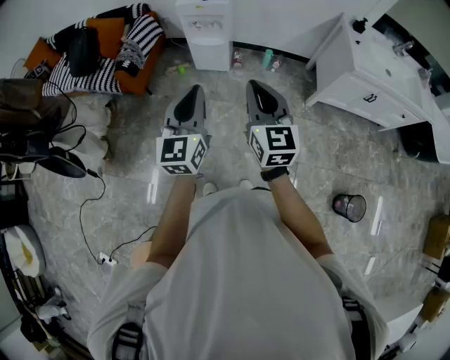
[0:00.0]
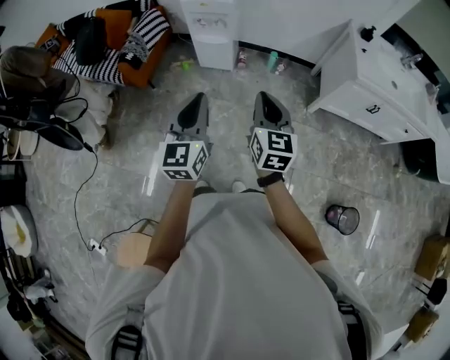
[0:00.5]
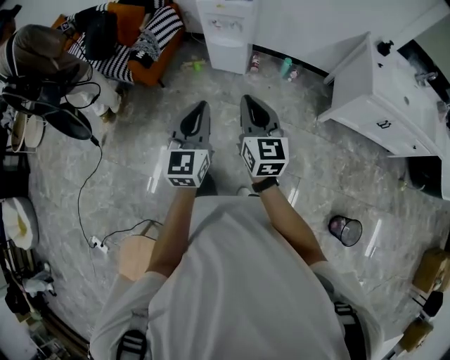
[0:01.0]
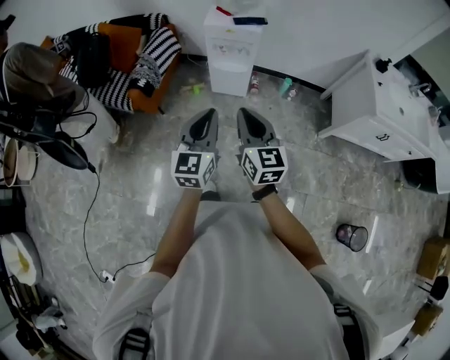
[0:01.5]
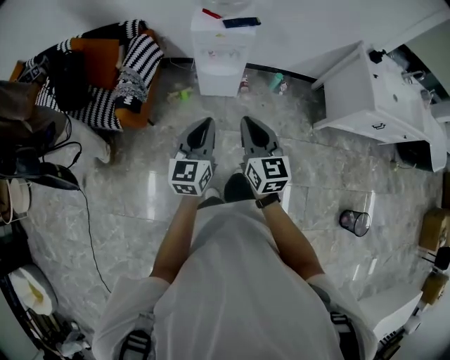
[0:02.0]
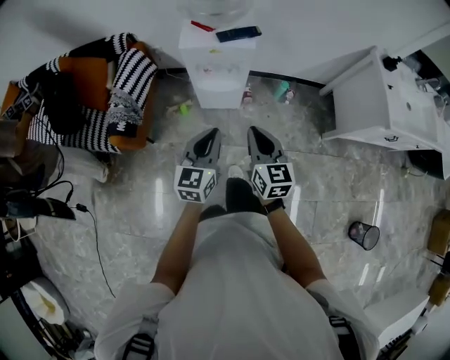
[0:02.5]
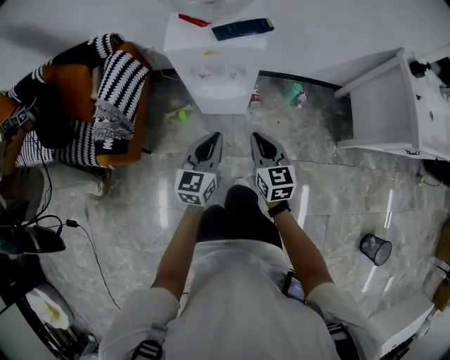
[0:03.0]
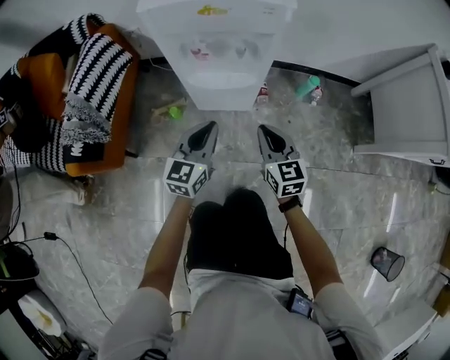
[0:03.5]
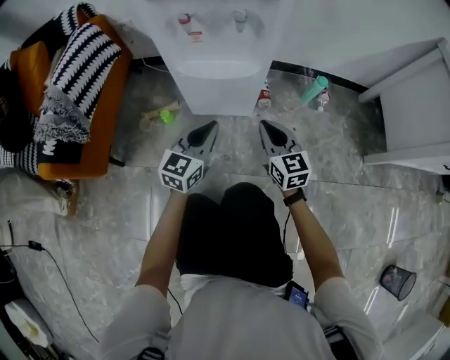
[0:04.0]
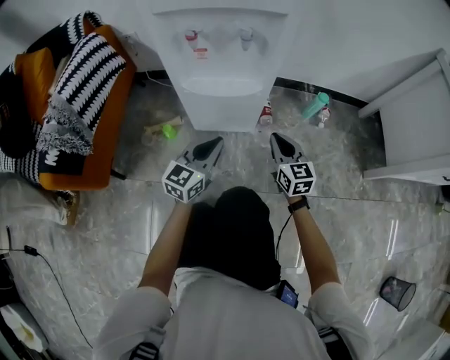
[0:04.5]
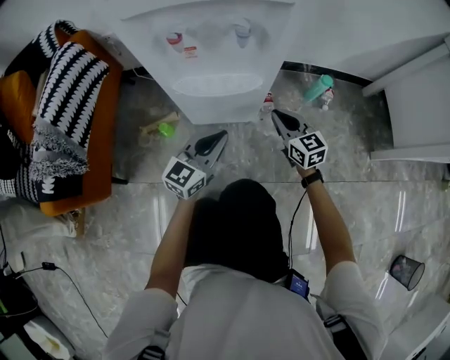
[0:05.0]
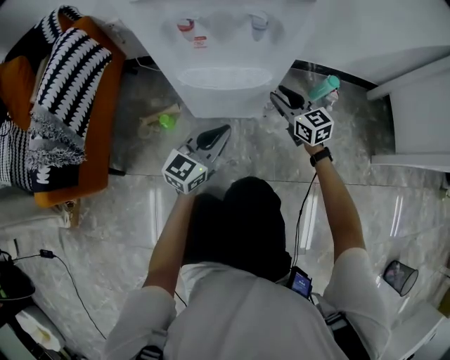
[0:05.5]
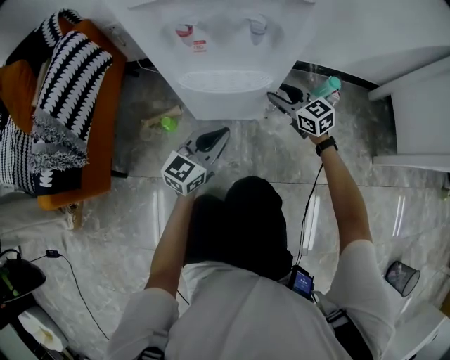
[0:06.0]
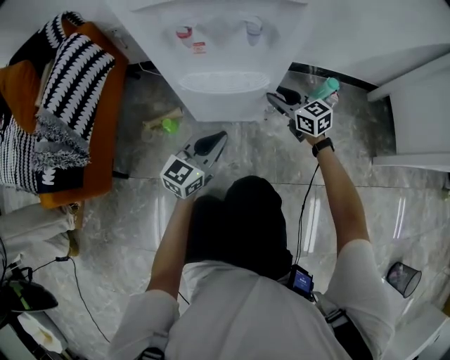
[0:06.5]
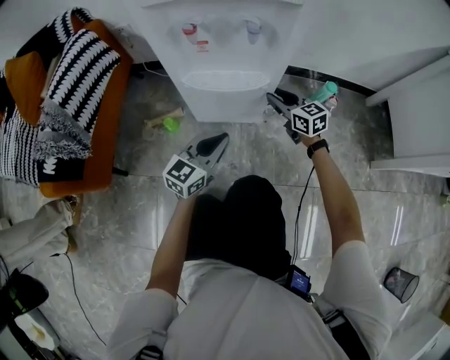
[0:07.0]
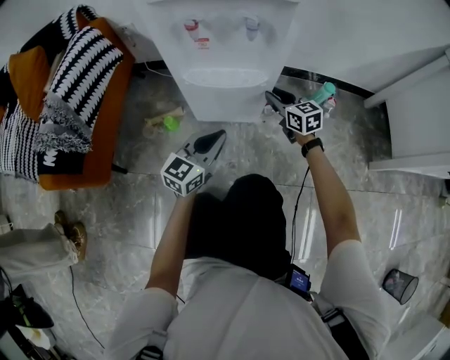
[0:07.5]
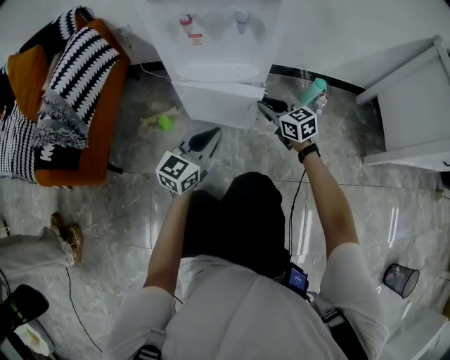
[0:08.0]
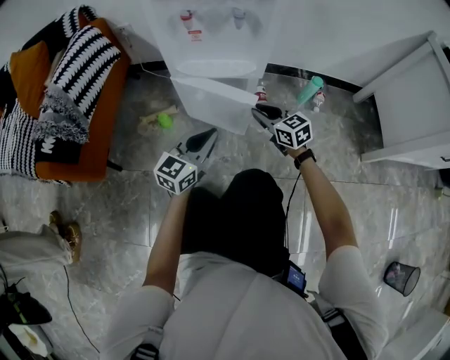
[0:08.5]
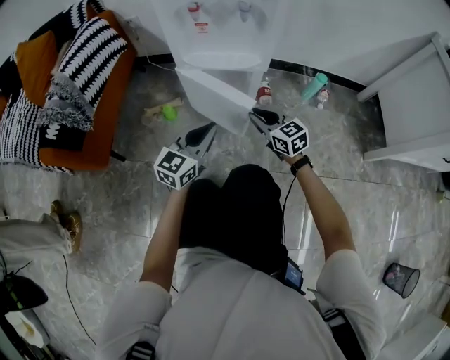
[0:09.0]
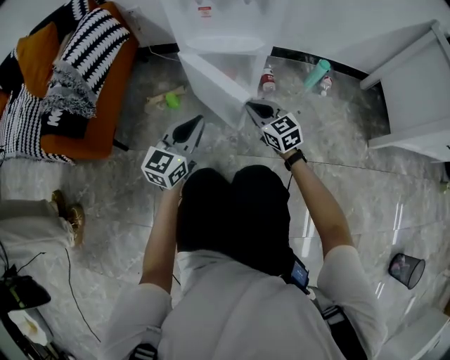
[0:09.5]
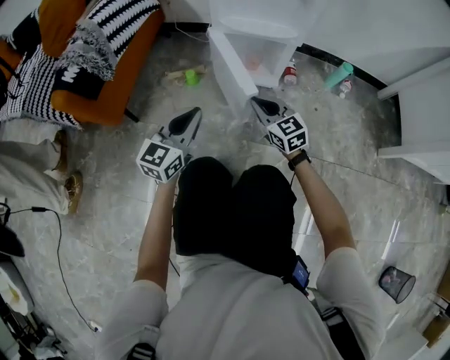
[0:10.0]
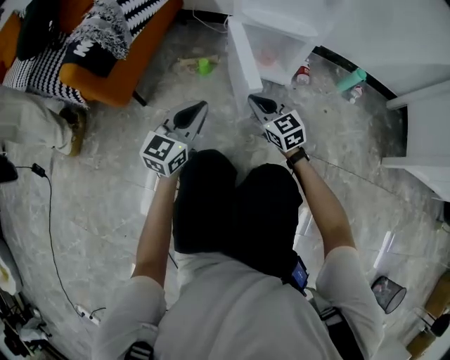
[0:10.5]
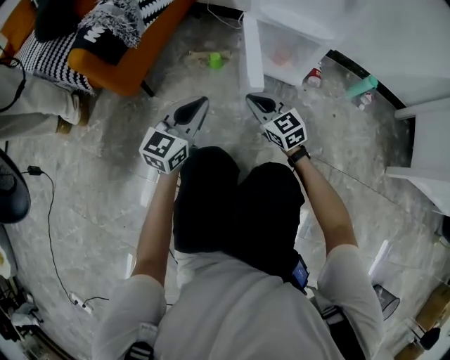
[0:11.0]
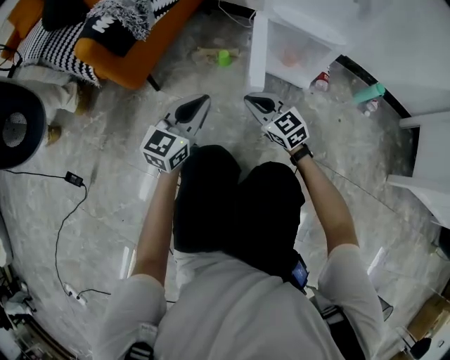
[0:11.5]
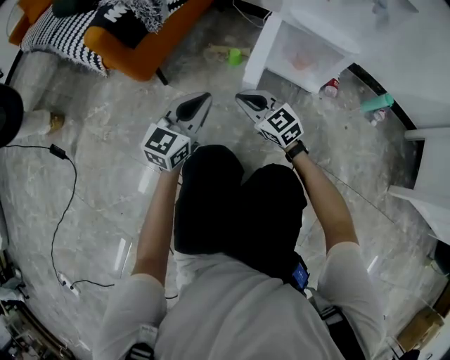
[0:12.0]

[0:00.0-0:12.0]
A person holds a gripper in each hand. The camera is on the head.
0:00.0 to 0:02.0: The two grippers go some 30 cm forward, to the left and downward.
0:02.0 to 0:04.0: The two grippers go some 70 cm downward and forward.
0:04.0 to 0:06.0: The right gripper shifts some 15 cm forward, changes its angle by roughly 20 degrees, and opens. The left gripper shifts by roughly 5 cm.
0:06.0 to 0:08.0: Both grippers travel together backward, roughly 5 cm. The right gripper closes its fingers.
0:08.0 to 0:10.0: The right gripper heads backward and to the left, covering roughly 20 cm. Meanwhile the left gripper travels to the left and backward by roughly 20 cm.
0:10.0 to 0:12.0: The right gripper moves to the left, about 20 cm, and swivels some 30 degrees, while the left gripper goes roughly 10 cm to the left.

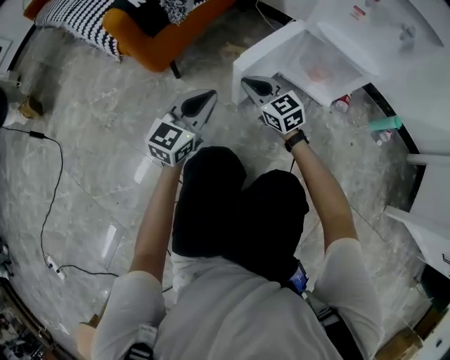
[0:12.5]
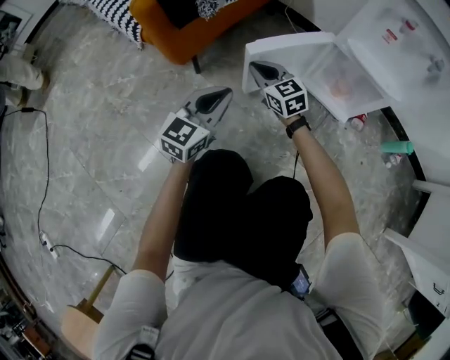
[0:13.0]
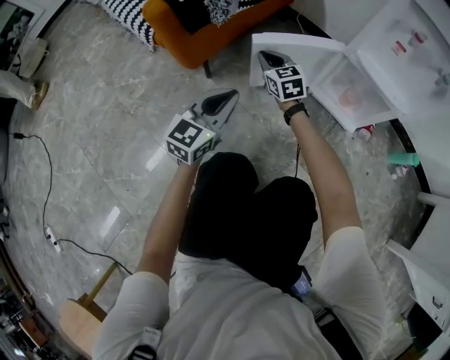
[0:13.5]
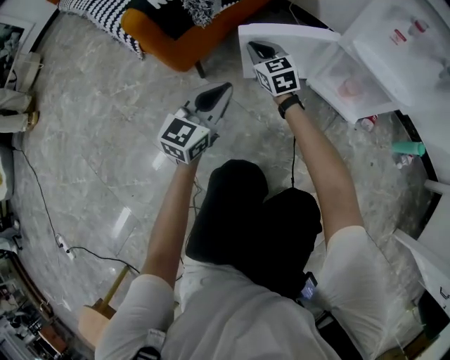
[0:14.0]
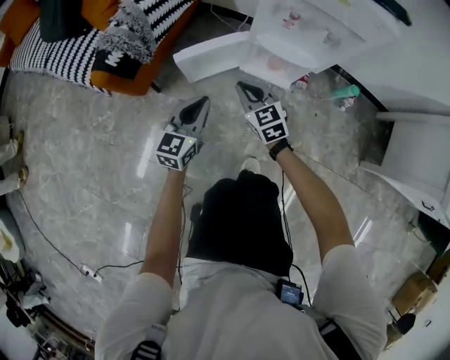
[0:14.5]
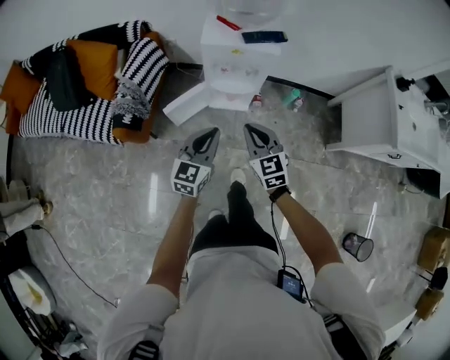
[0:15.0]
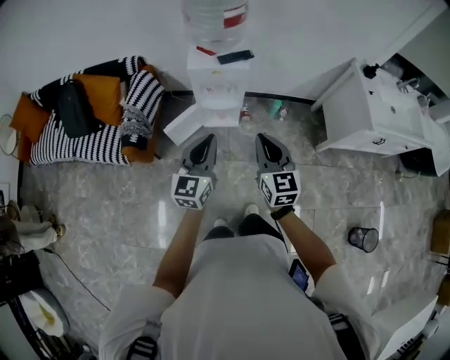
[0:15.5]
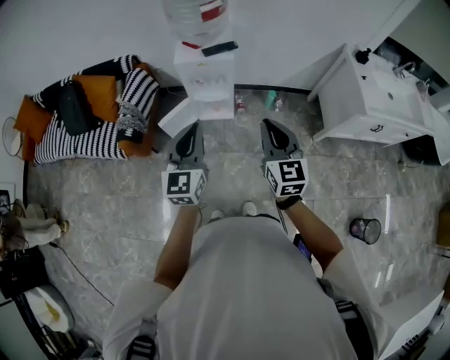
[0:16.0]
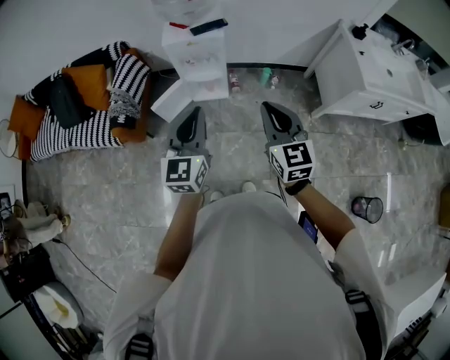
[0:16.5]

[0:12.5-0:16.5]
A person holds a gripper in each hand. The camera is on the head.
0:12.5 to 0:14.5: Both grippers move upward and to the right, some 20 cm. The right gripper swivels about 20 degrees.
0:14.5 to 0:16.5: The right gripper is displaced upward, to the right and backward by approximately 70 cm, and changes its angle by about 40 degrees. The left gripper heads upward and to the right, covering approximately 60 cm.

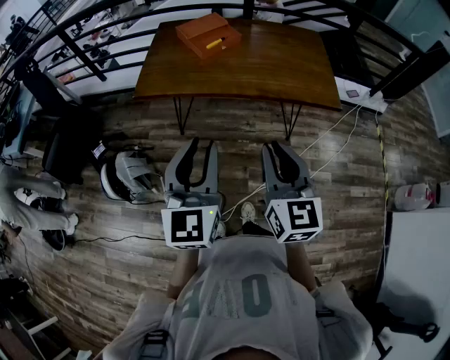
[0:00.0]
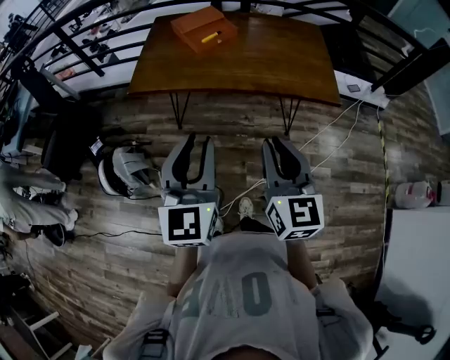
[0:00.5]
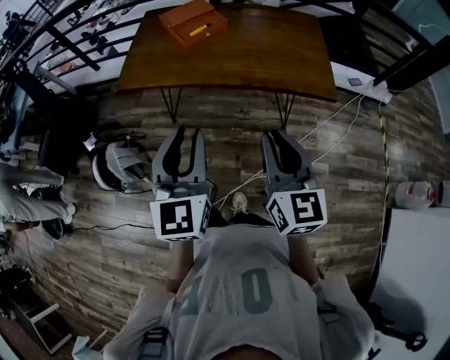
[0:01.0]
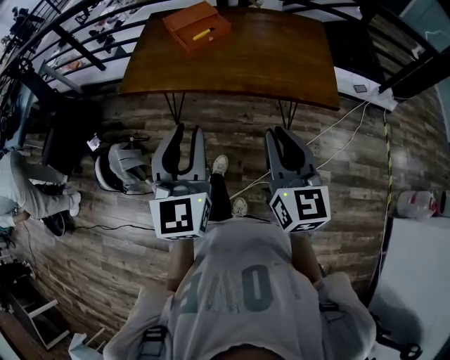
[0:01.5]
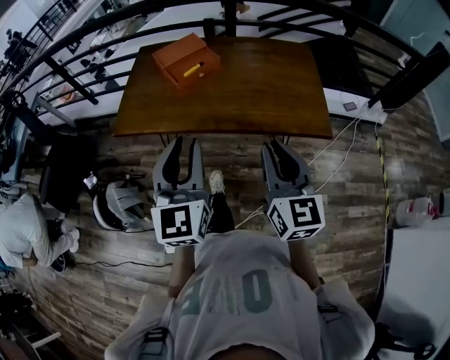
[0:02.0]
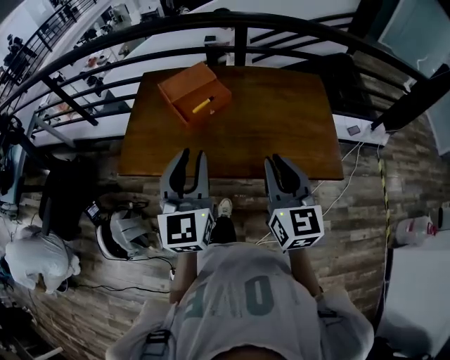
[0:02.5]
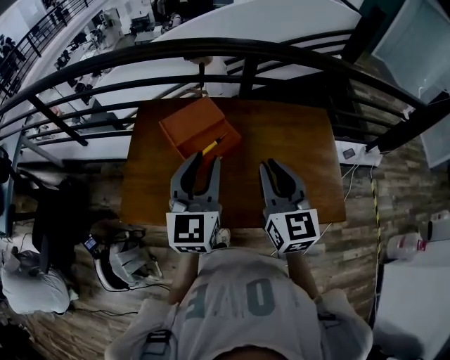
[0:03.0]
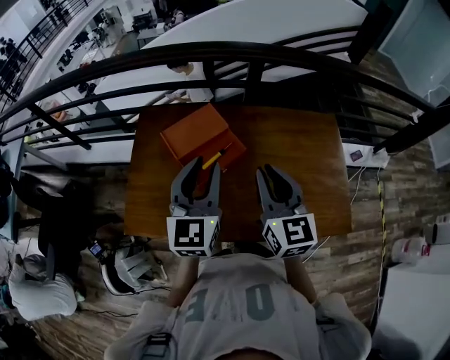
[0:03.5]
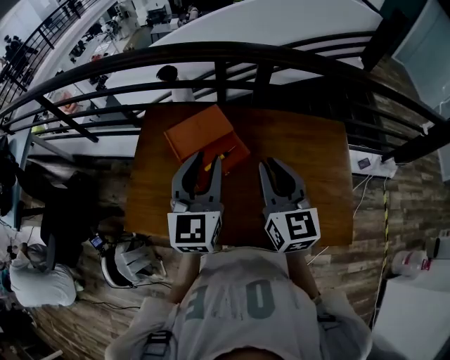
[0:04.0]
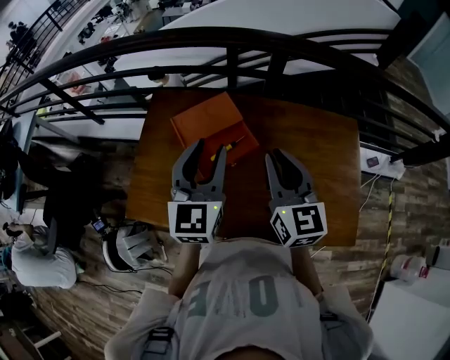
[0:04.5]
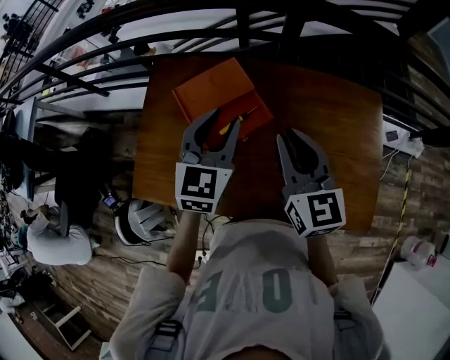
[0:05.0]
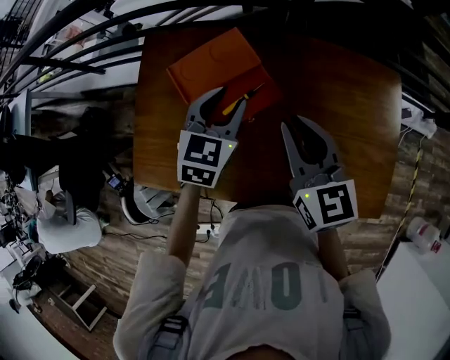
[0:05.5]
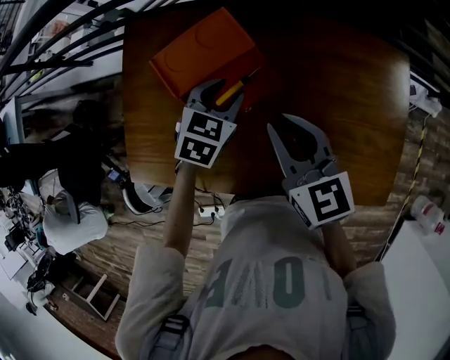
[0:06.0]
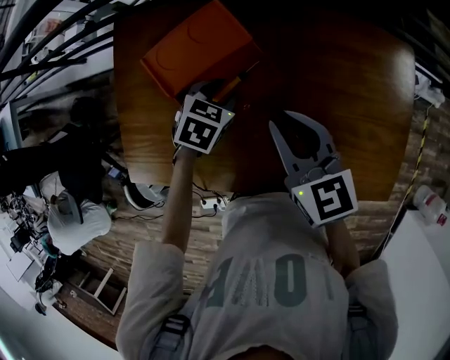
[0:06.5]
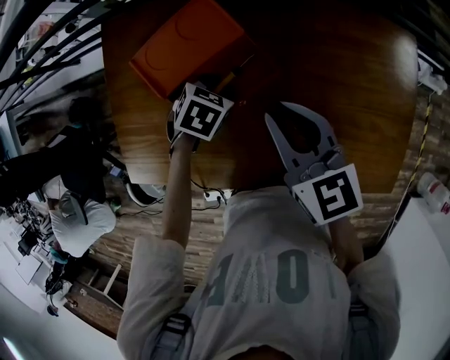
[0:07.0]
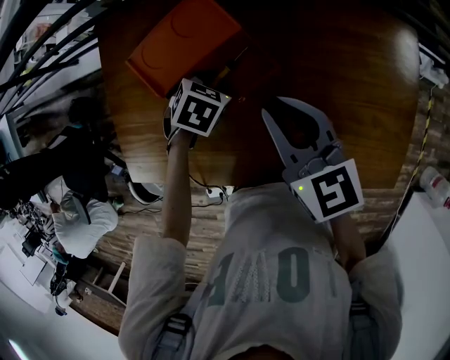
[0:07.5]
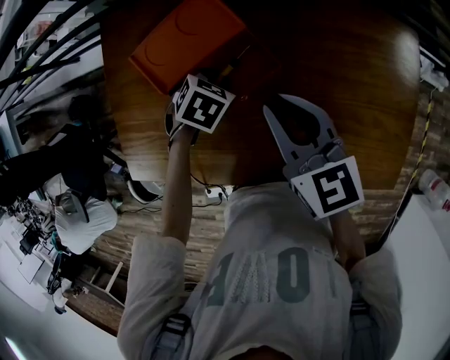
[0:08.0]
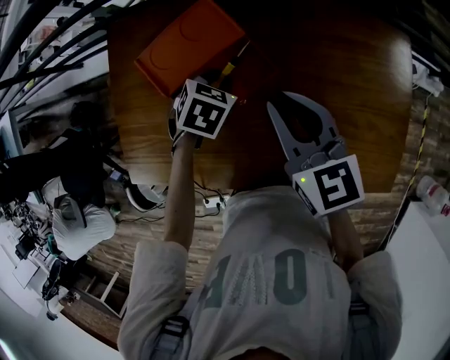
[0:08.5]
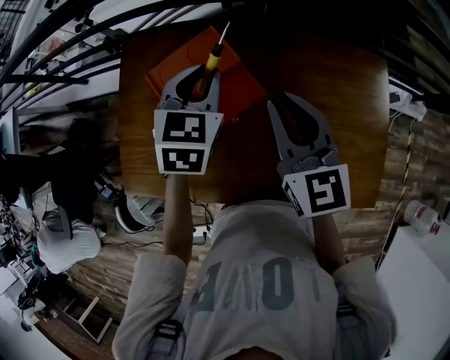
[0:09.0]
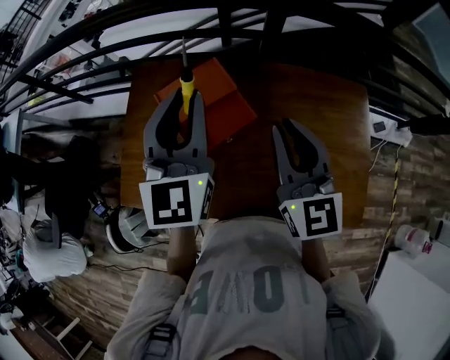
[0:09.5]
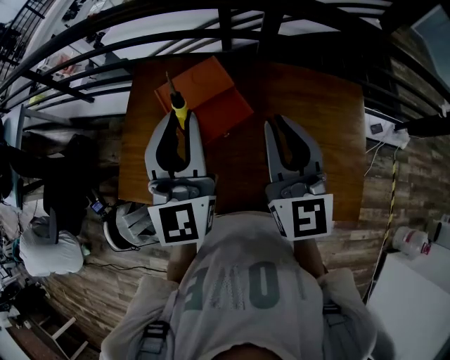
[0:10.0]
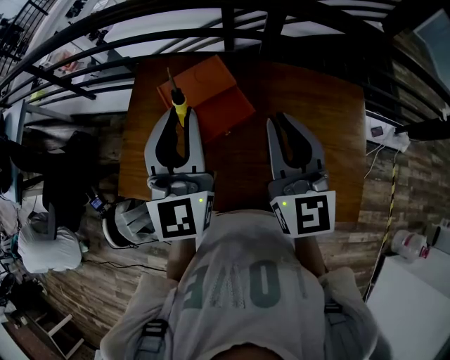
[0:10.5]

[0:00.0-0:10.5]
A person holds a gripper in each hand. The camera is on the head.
0:00.0 to 0:02.0: The grippers both shift forward and to the right by approximately 15 cm.
0:02.0 to 0:04.0: The grippers both shift forward by some 35 cm.
0:04.0 to 0:06.5: The left gripper moves downward, some 30 cm, and tips its fingers downward by roughly 50 degrees. Meanwhile the right gripper travels downward by approximately 15 cm, and swivels approximately 30 degrees.
0:06.5 to 0:08.5: The grippers make only small movements.
0:08.5 to 0:10.5: The right gripper shifts about 15 cm upward, and changes its angle by about 30 degrees. The left gripper travels upward by some 35 cm, and tilts its fingers approximately 70 degrees upward.
